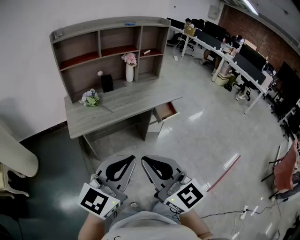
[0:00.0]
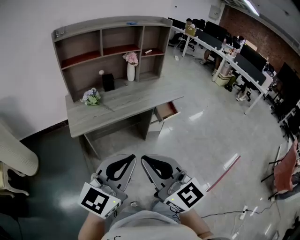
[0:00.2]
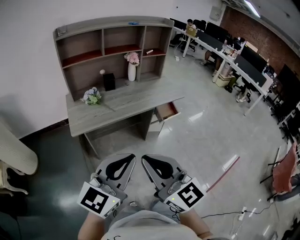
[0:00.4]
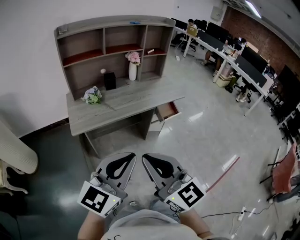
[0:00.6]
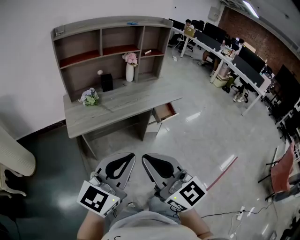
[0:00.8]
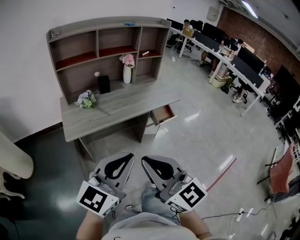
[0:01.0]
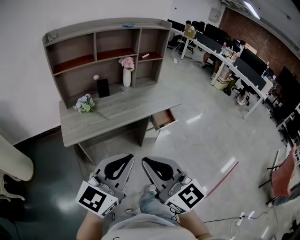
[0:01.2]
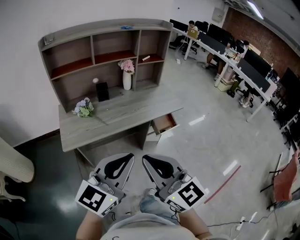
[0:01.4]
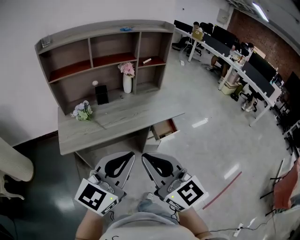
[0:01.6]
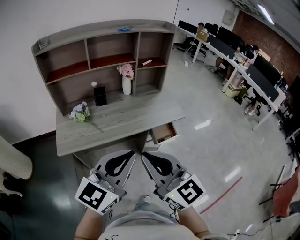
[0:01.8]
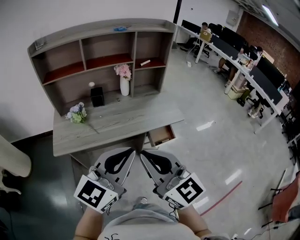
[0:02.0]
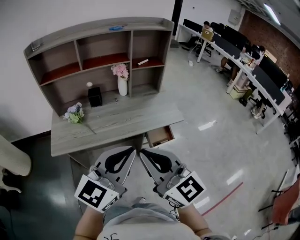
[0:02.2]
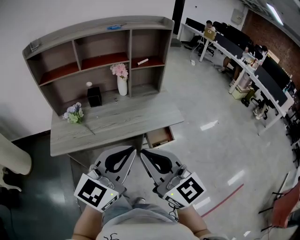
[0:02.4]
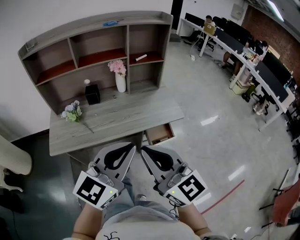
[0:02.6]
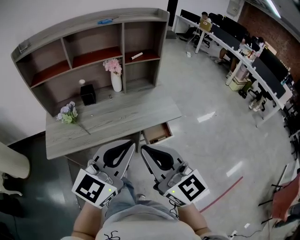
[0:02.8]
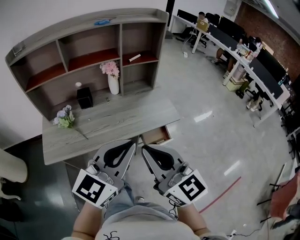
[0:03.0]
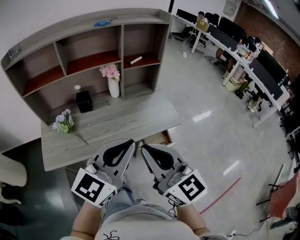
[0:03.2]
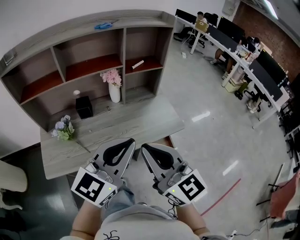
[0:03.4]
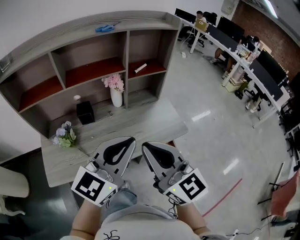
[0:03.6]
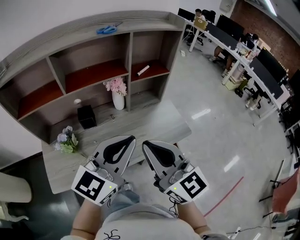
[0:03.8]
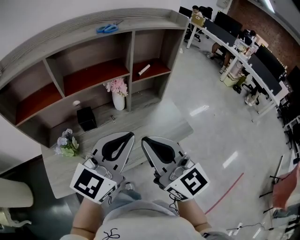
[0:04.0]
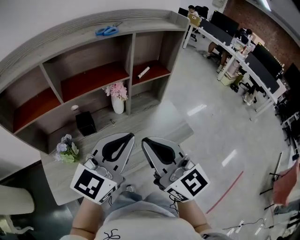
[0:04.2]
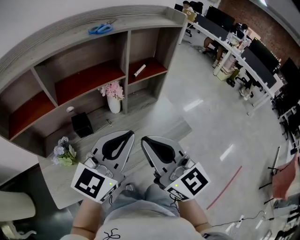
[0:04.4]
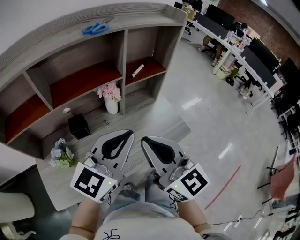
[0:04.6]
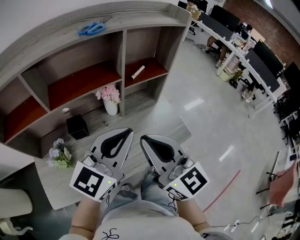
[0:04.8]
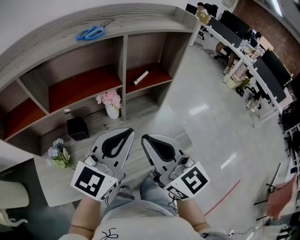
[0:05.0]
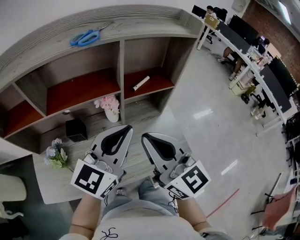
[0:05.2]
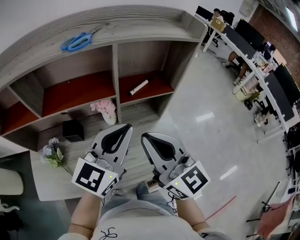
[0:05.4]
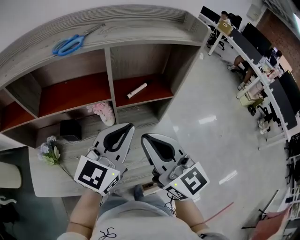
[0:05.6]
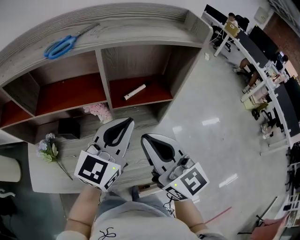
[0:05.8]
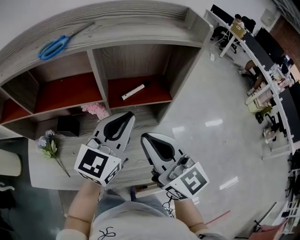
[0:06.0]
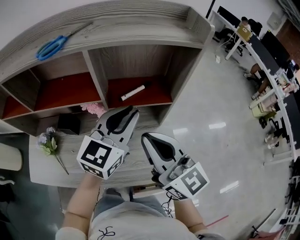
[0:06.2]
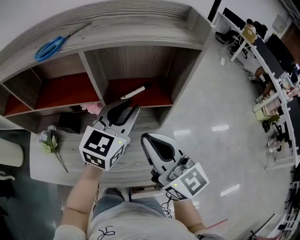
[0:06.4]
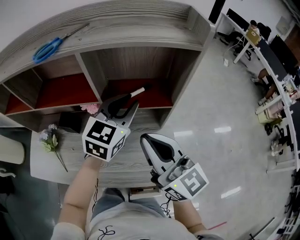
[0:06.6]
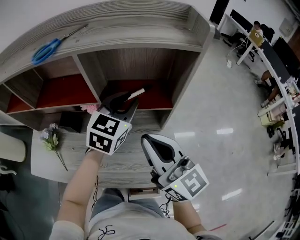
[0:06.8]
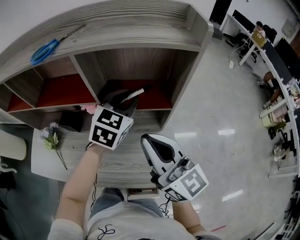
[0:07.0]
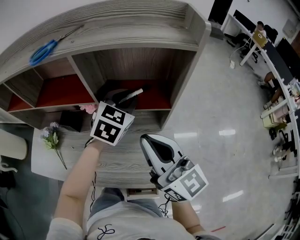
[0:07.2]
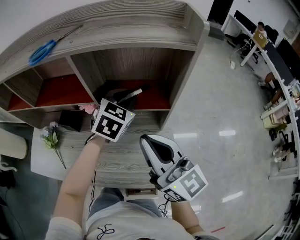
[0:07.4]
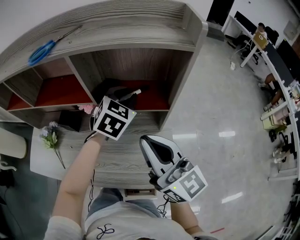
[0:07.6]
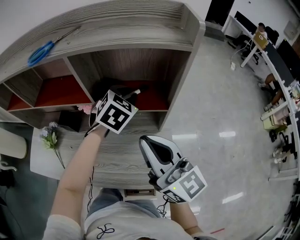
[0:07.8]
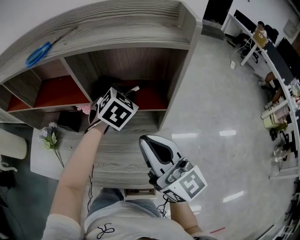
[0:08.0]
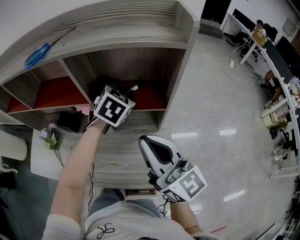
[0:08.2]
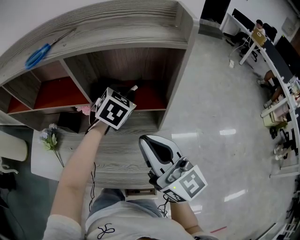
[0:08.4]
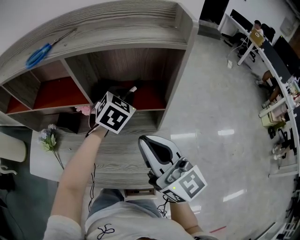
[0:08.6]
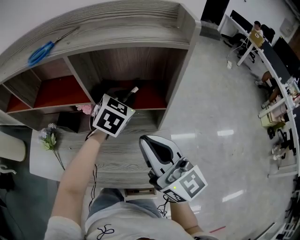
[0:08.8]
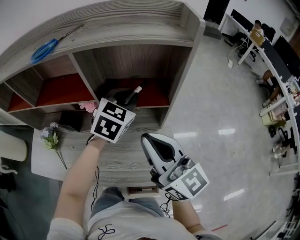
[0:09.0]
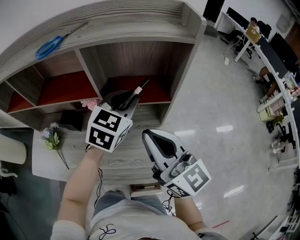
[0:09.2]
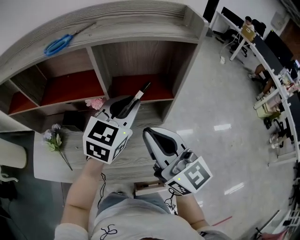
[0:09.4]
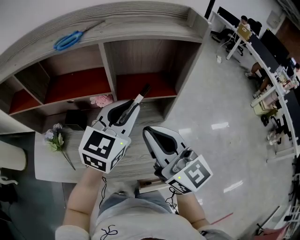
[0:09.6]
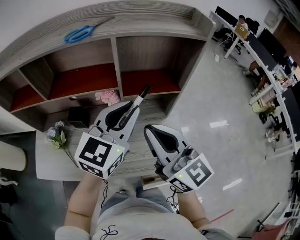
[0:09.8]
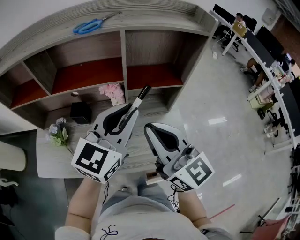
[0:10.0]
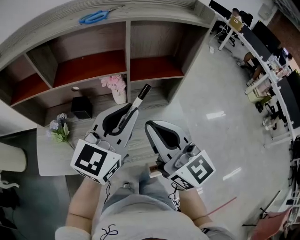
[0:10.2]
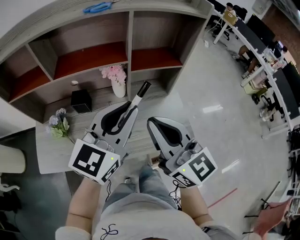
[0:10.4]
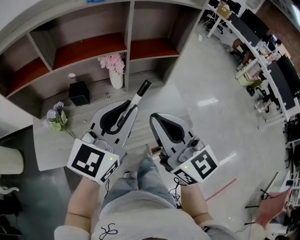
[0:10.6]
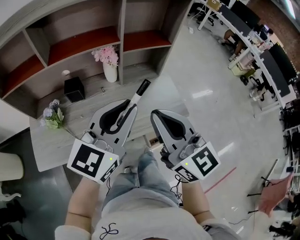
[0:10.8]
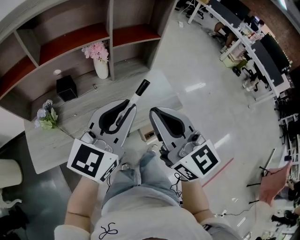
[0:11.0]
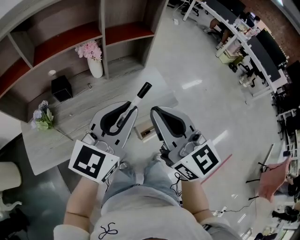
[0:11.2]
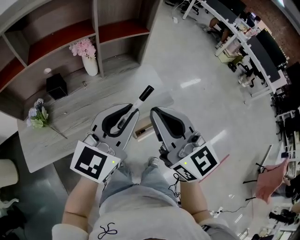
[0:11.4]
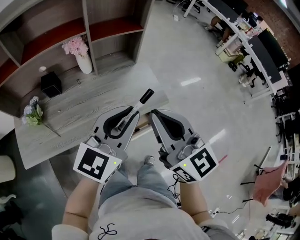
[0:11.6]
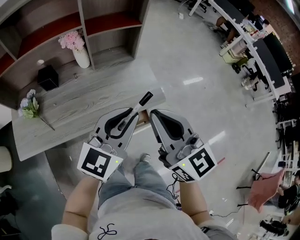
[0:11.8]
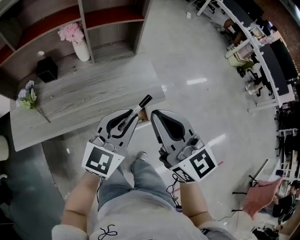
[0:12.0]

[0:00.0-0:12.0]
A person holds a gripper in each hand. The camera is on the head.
0:00.0 to 0:01.6: The right gripper is displaced forward and to the right by approximately 20 cm; the left gripper travels forward by about 15 cm.
0:01.6 to 0:03.0: The grippers both shift forward and to the right by roughly 20 cm.
0:03.0 to 0:04.4: The grippers both shift forward and to the left by approximately 25 cm.
0:04.4 to 0:06.0: Both grippers move forward and to the right, some 25 cm. The right gripper turns by about 20 degrees. The left gripper rotates some 30 degrees.
0:06.0 to 0:07.6: The left gripper shifts approximately 15 cm forward and downward, tips its fingers downward by some 30 degrees, and opens, while the right gripper moves to the right, about 5 cm.
0:07.6 to 0:09.0: The grippers move only a little.
0:09.0 to 0:10.4: The right gripper shifts approximately 20 cm to the left and backward. The left gripper heads backward and to the left, covering about 30 cm, and swivels some 40 degrees.
0:10.4 to 0:12.0: The right gripper is displaced to the right and backward by roughly 20 cm. The left gripper moves to the right, downward and backward, approximately 25 cm.

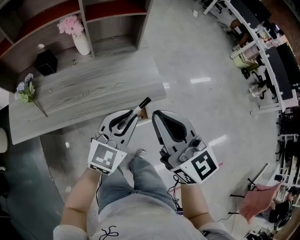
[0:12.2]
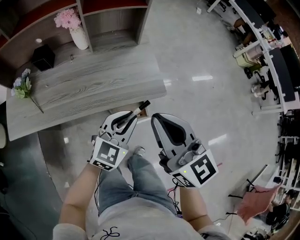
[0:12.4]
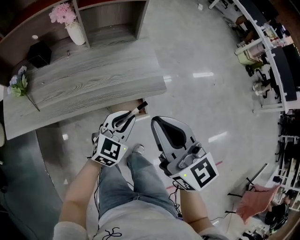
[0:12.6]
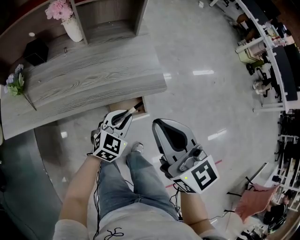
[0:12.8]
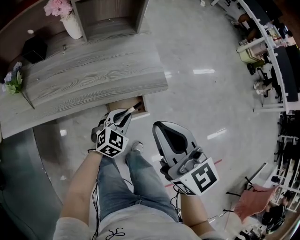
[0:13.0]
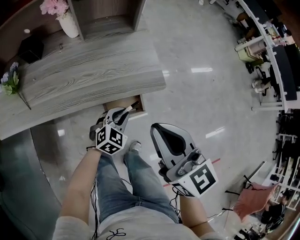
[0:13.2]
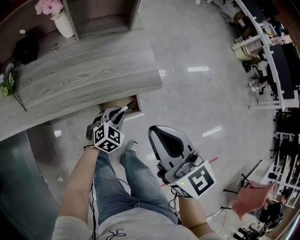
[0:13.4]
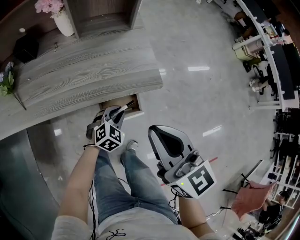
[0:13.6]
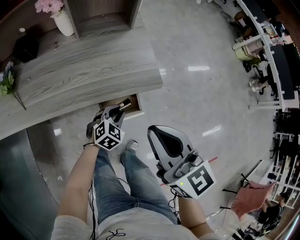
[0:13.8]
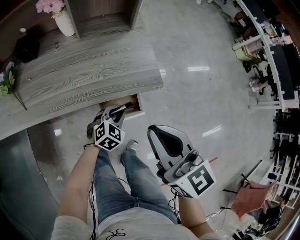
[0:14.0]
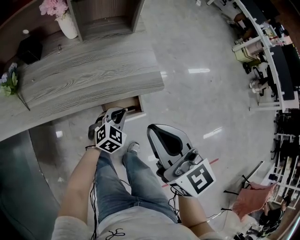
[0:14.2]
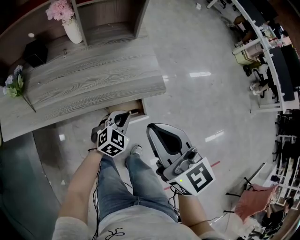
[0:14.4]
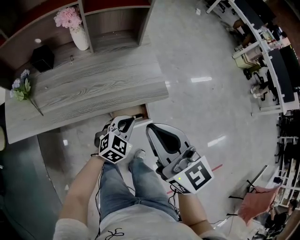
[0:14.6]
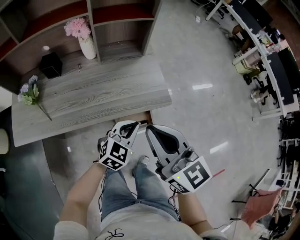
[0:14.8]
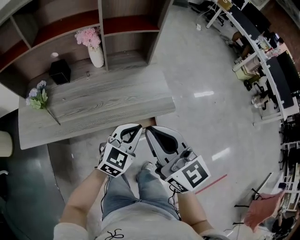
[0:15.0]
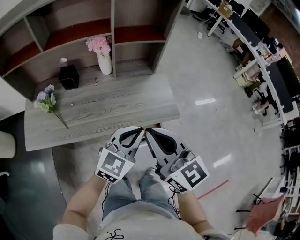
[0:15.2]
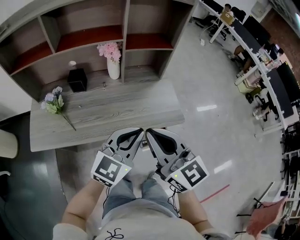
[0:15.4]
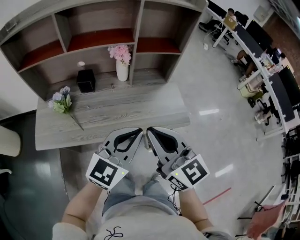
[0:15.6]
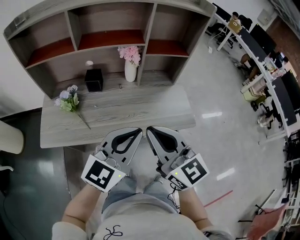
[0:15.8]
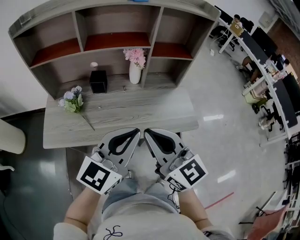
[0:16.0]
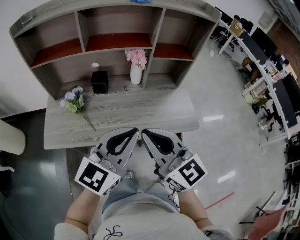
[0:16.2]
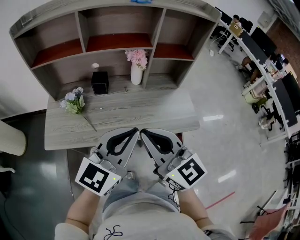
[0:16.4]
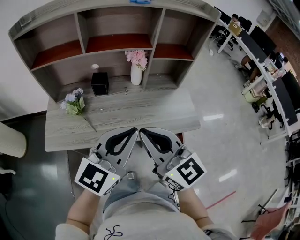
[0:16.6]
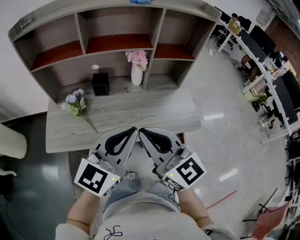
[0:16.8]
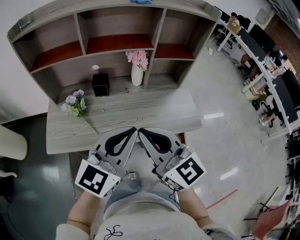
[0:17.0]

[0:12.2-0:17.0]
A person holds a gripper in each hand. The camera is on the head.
0:12.2 to 0:13.8: The left gripper heads downward, covering some 30 cm, and tilts its fingers approximately 30 degrees downward, while the right gripper shifts about 10 cm downward.
0:13.8 to 0:15.4: The left gripper is displaced upward by some 35 cm, and points its fingers roughly 40 degrees further upward. The right gripper is displaced to the left and upward by some 20 cm.
0:15.4 to 0:17.0: The right gripper heads to the left, covering about 15 cm; the left gripper moves to the left and upward, some 15 cm.

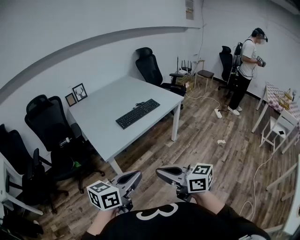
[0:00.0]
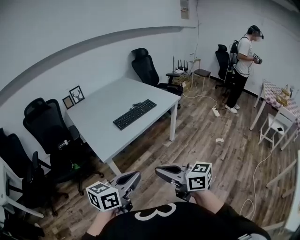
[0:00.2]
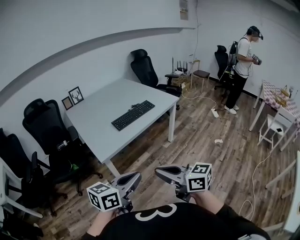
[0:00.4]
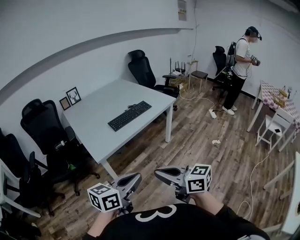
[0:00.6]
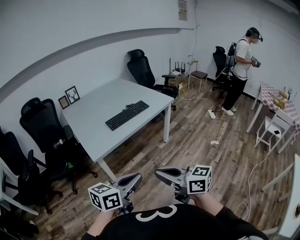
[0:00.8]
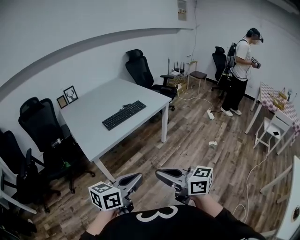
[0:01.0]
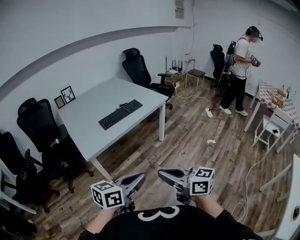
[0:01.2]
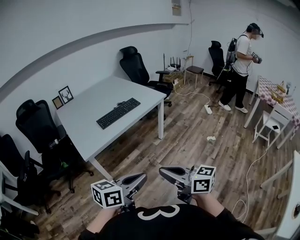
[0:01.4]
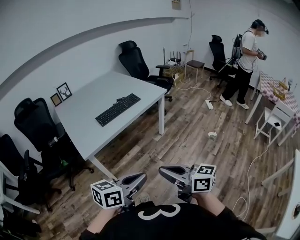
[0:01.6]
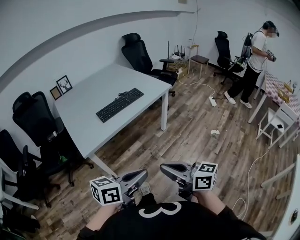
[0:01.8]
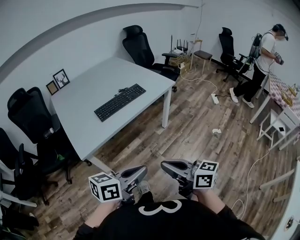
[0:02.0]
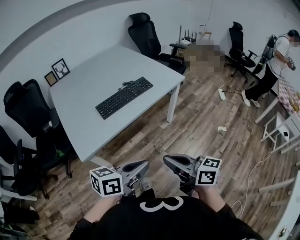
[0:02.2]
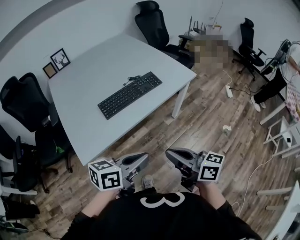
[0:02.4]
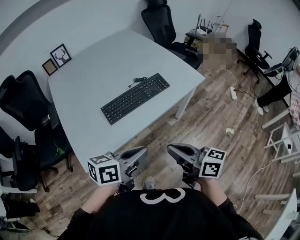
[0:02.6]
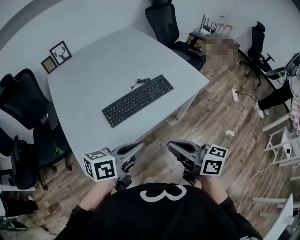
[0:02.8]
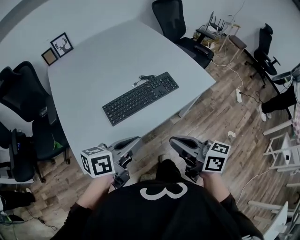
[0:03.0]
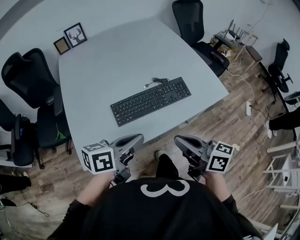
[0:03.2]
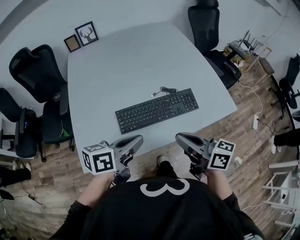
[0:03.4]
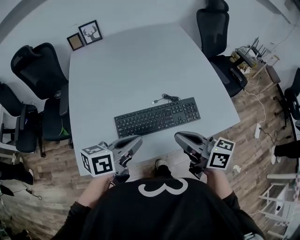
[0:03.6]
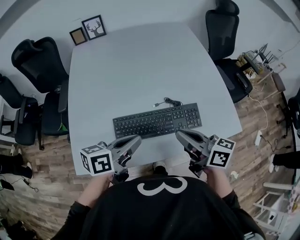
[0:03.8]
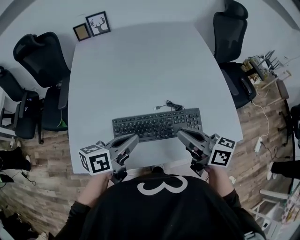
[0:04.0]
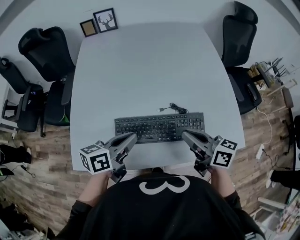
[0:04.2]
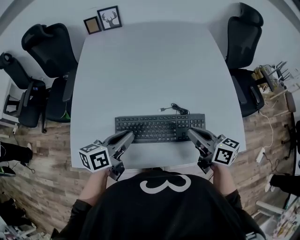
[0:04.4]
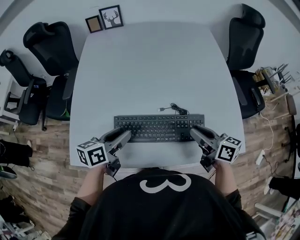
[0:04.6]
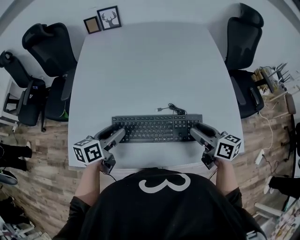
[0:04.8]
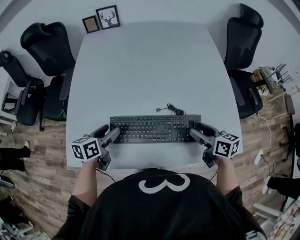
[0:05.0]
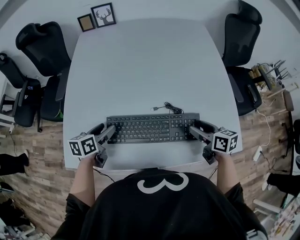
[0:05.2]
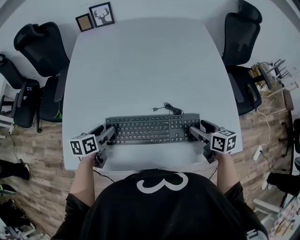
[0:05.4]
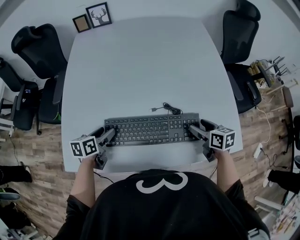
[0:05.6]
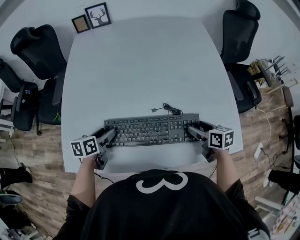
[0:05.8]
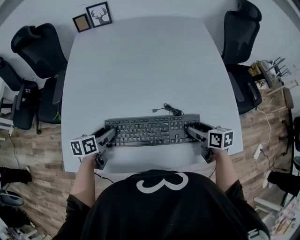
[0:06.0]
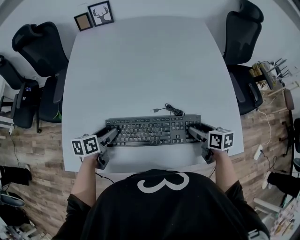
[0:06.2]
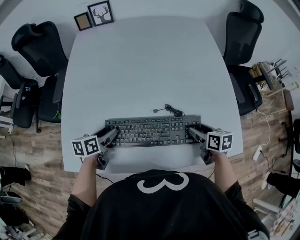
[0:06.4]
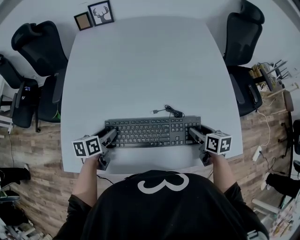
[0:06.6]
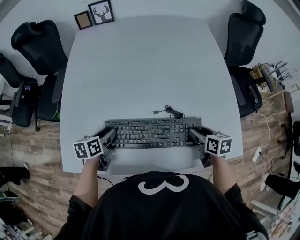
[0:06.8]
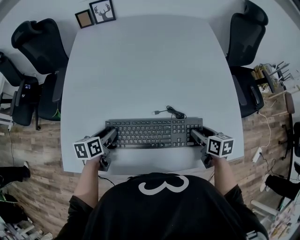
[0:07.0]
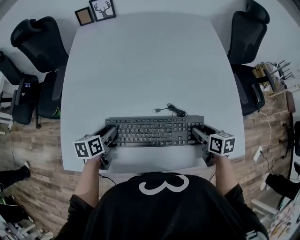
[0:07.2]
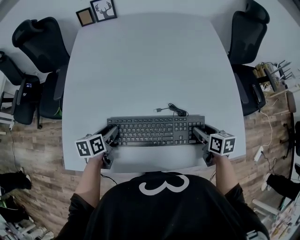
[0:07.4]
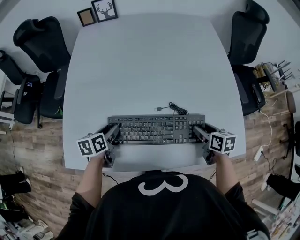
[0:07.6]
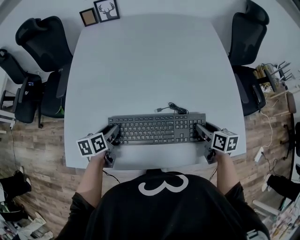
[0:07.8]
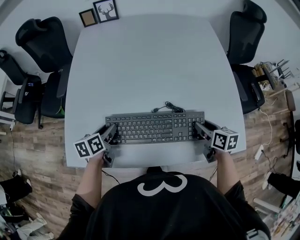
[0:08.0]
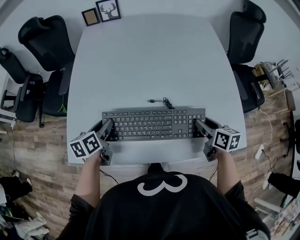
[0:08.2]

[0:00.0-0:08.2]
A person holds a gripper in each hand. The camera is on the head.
0:00.0 to 0:01.6: Both grippers travel together to the right, about 15 cm.
0:01.6 to 0:03.2: Both grippers are carried forward, approximately 50 cm. The left gripper swivels roughly 30 degrees.
0:03.2 to 0:05.0: The left gripper moves about 25 cm, rotates approximately 40 degrees, and opens up. The right gripper ends up approximately 30 cm from where it was, swivels approximately 30 degrees, and opens up.
0:05.0 to 0:06.6: Both grippers travel together downward, about 10 cm. The right gripper turns by roughly 20 degrees.
0:06.6 to 0:08.2: The left gripper shifts some 5 cm upward.
